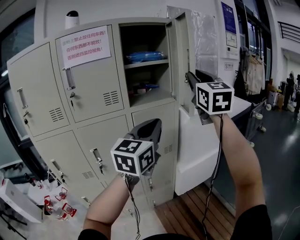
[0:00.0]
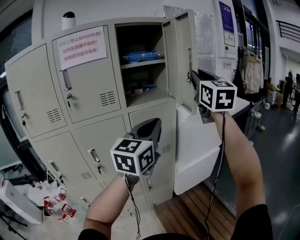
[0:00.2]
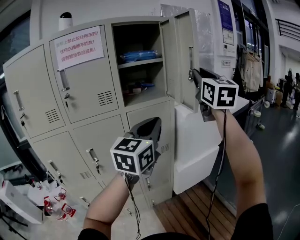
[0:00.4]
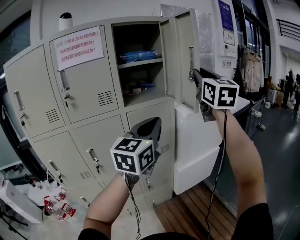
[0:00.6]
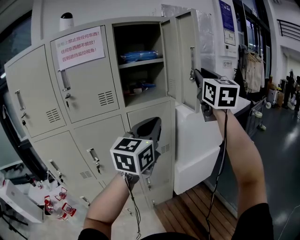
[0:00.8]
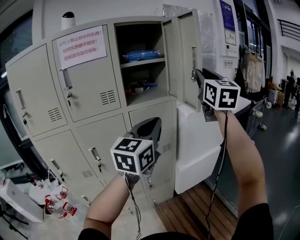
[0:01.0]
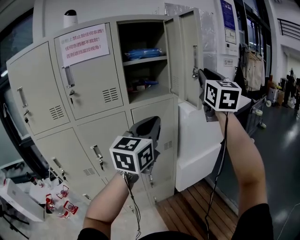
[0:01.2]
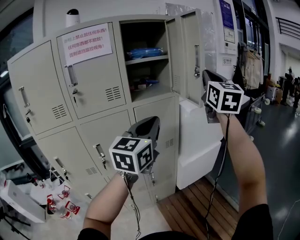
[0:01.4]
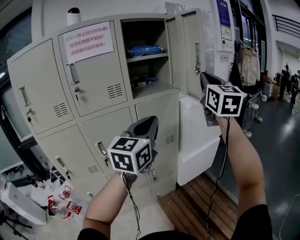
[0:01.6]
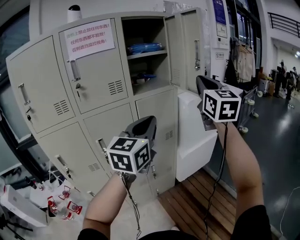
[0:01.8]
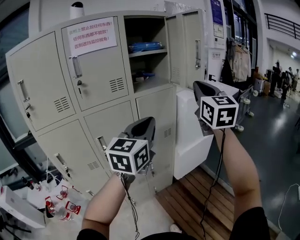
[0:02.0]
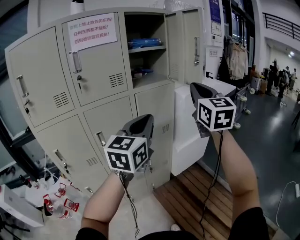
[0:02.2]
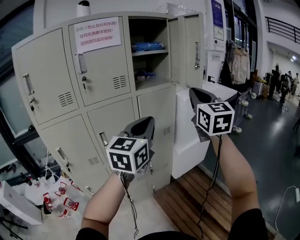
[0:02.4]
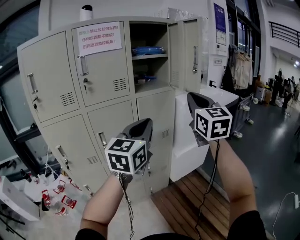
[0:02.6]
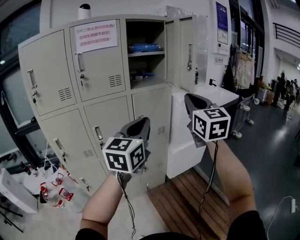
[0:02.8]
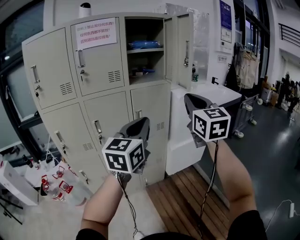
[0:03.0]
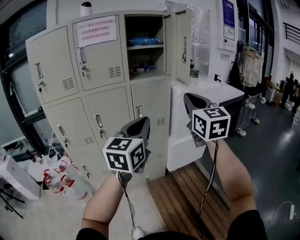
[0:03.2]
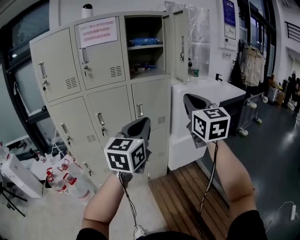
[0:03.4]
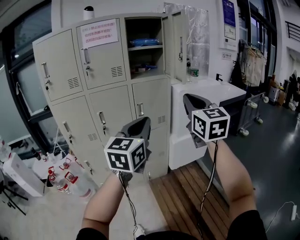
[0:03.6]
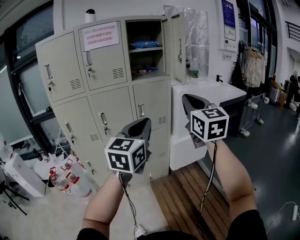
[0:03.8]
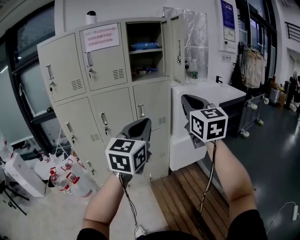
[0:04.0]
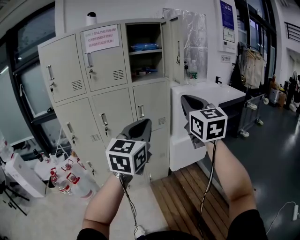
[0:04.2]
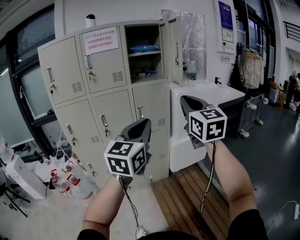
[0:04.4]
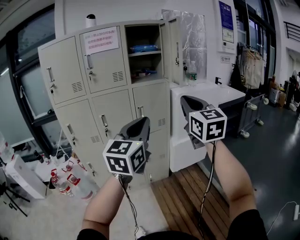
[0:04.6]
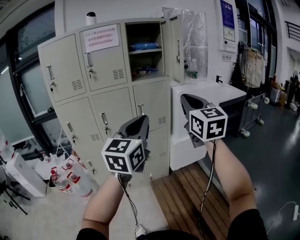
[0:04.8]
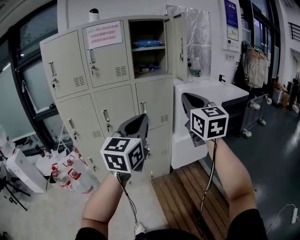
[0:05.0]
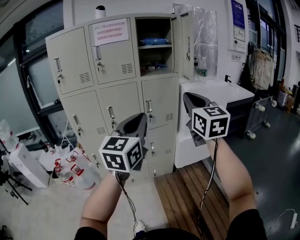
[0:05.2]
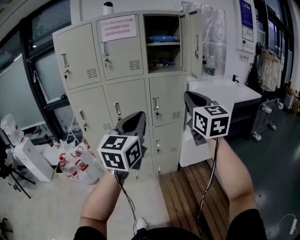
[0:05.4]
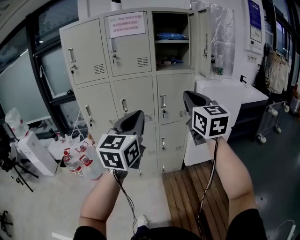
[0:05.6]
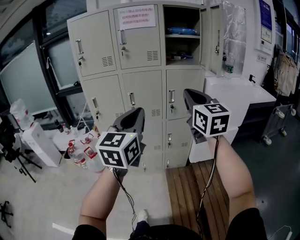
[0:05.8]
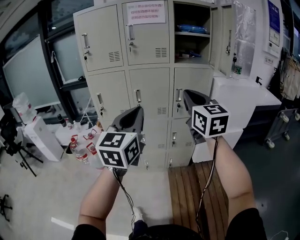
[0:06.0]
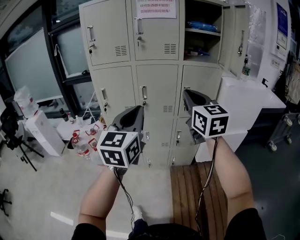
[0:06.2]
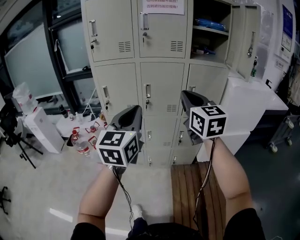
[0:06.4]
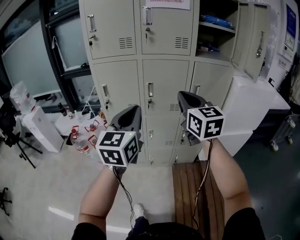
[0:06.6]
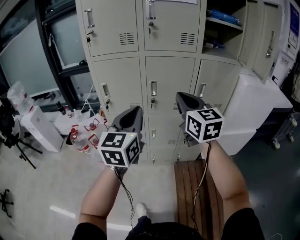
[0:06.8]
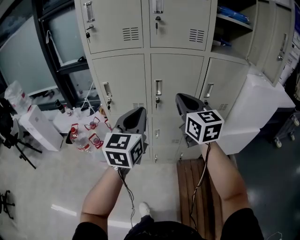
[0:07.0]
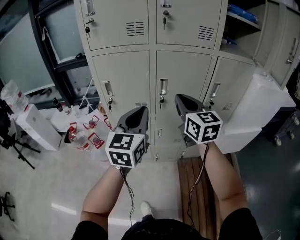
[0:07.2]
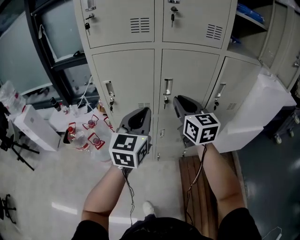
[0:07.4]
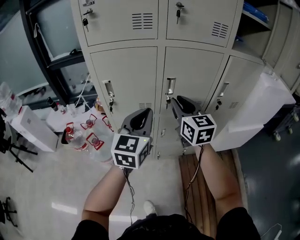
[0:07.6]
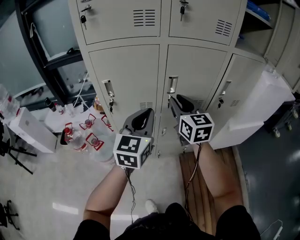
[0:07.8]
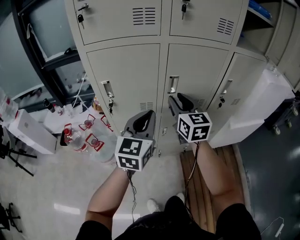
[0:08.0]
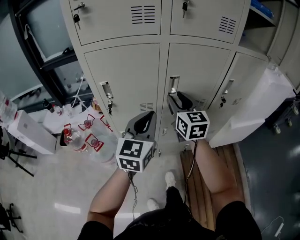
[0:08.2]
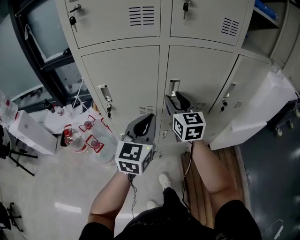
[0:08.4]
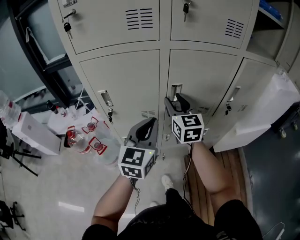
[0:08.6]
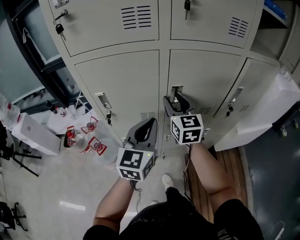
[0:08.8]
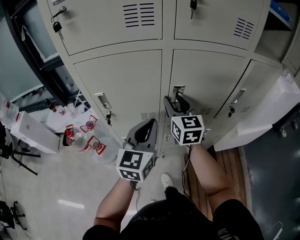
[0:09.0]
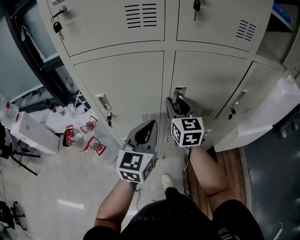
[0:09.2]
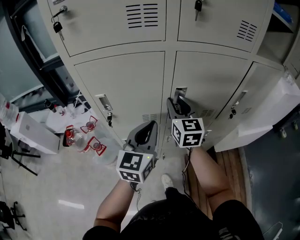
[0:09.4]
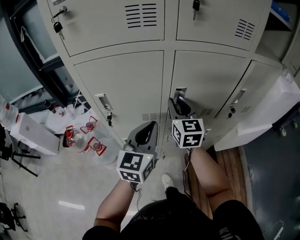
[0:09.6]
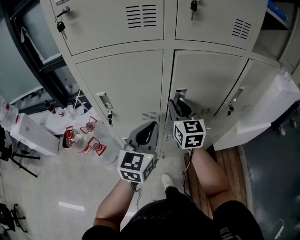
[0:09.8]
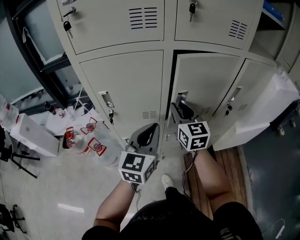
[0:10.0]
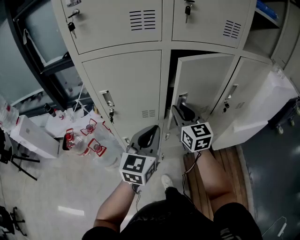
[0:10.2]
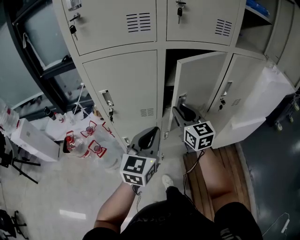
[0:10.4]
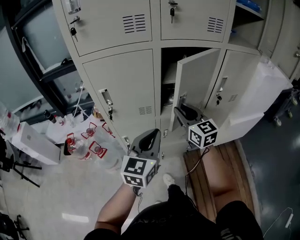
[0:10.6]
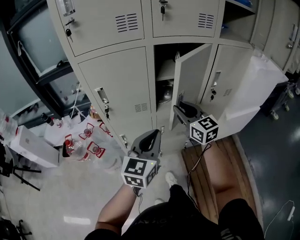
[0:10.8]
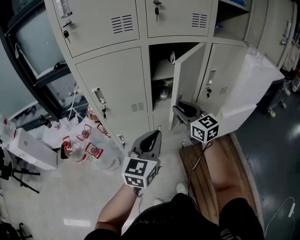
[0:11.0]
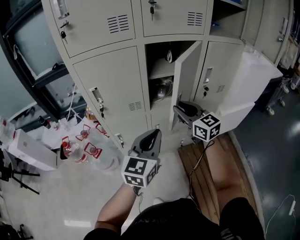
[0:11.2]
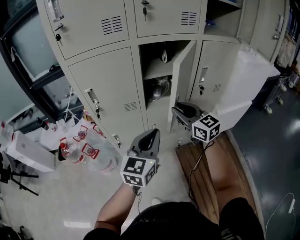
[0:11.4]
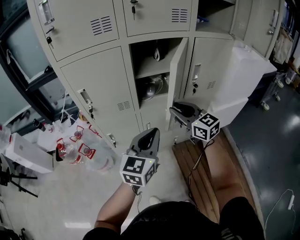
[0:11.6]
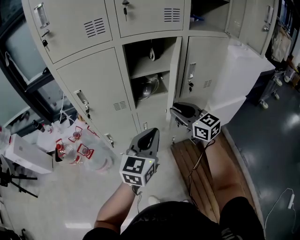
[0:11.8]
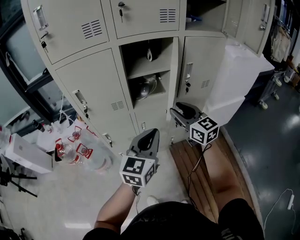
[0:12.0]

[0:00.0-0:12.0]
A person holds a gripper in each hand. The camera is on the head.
0:00.0 to 0:01.6: The right gripper moves roughly 5 cm, and closes its fingers, while the left gripper moves roughly 5 cm.
0:01.6 to 0:03.0: The right gripper goes about 15 cm backward and downward. The left gripper moves backward, about 10 cm.
0:03.0 to 0:04.4: The left gripper is displaced backward and to the right by approximately 10 cm; the right gripper goes roughly 10 cm backward.
0:04.4 to 0:06.0: The two grippers go roughly 15 cm to the left. The left gripper rotates some 20 degrees.
0:06.0 to 0:07.6: Both grippers travel together forward, to the left and downward, about 40 cm. The right gripper opens its fingers.
0:07.6 to 0:09.0: The grippers both shift forward and downward by approximately 10 cm. The right gripper opens.
0:09.0 to 0:10.4: The two grippers go about 10 cm backward.
0:10.4 to 0:12.0: The two grippers go about 15 cm to the right and backward.

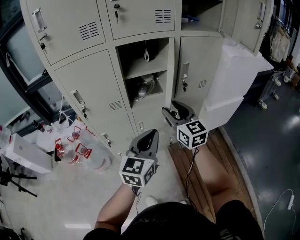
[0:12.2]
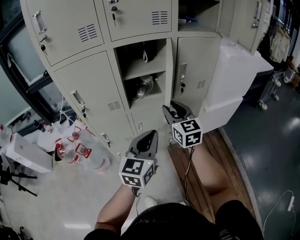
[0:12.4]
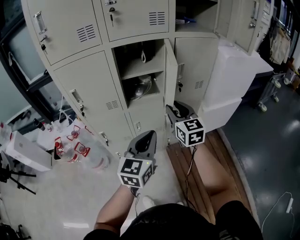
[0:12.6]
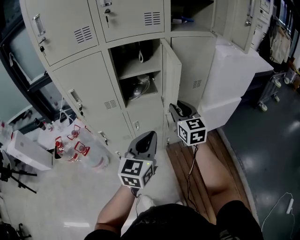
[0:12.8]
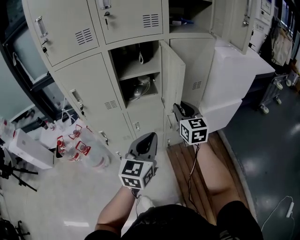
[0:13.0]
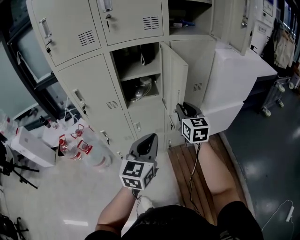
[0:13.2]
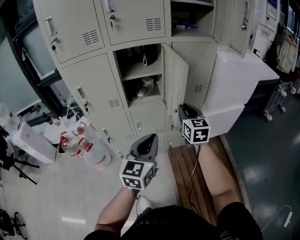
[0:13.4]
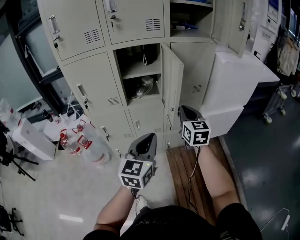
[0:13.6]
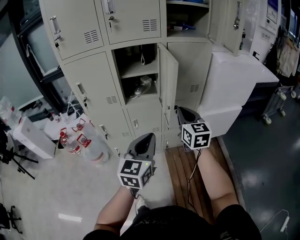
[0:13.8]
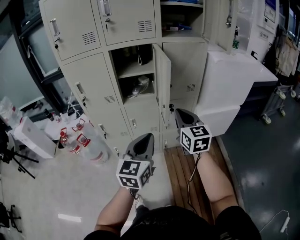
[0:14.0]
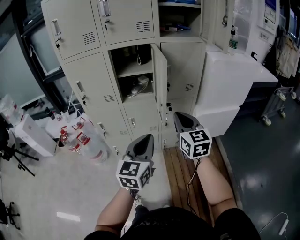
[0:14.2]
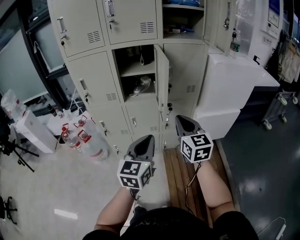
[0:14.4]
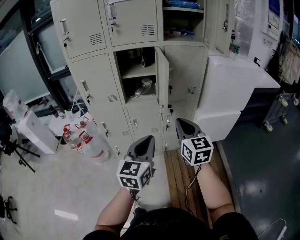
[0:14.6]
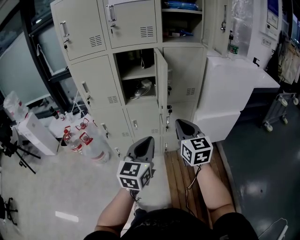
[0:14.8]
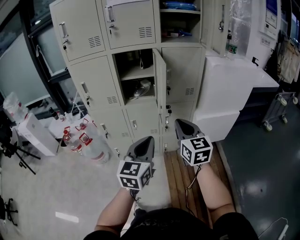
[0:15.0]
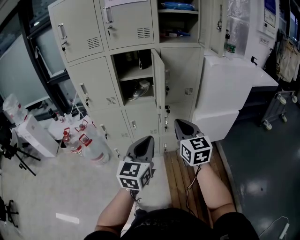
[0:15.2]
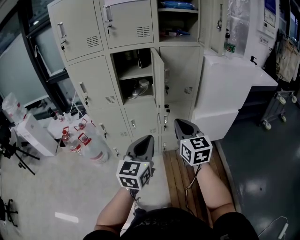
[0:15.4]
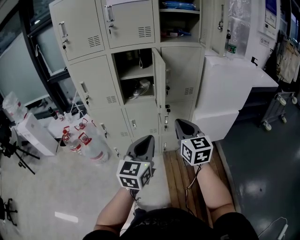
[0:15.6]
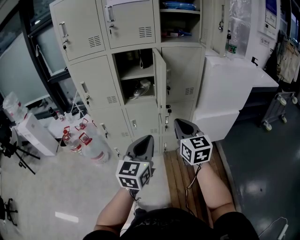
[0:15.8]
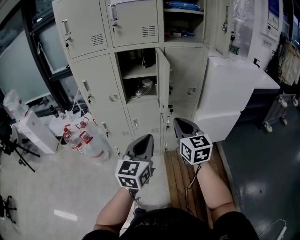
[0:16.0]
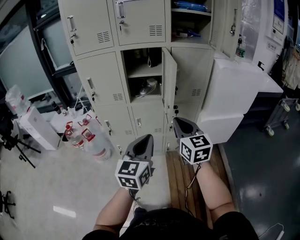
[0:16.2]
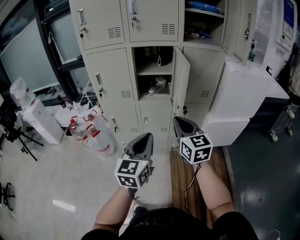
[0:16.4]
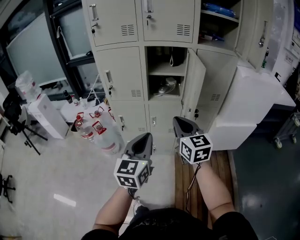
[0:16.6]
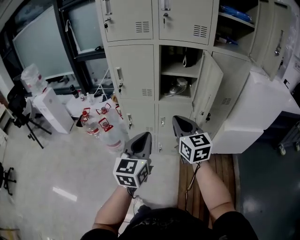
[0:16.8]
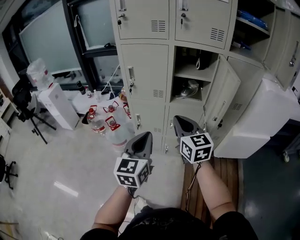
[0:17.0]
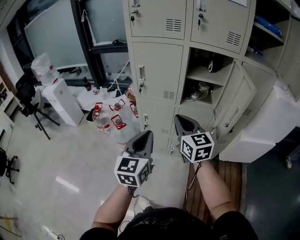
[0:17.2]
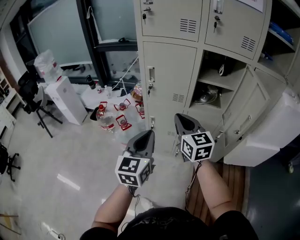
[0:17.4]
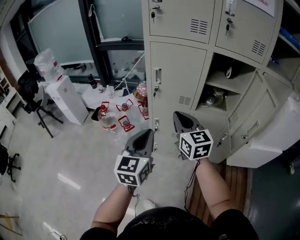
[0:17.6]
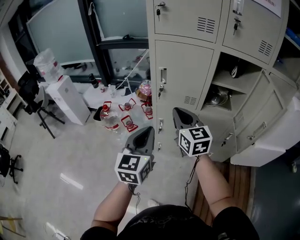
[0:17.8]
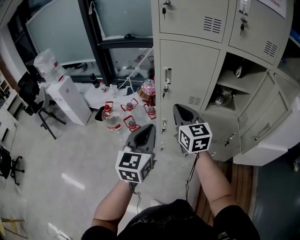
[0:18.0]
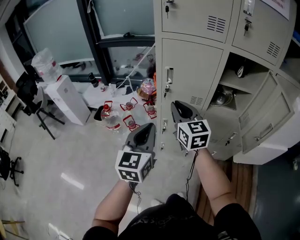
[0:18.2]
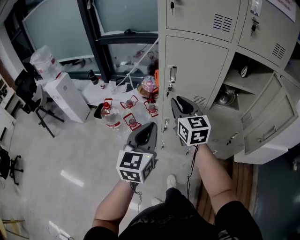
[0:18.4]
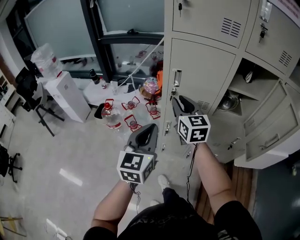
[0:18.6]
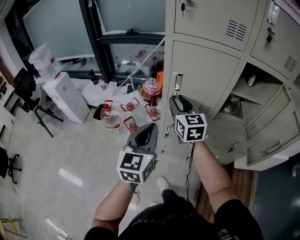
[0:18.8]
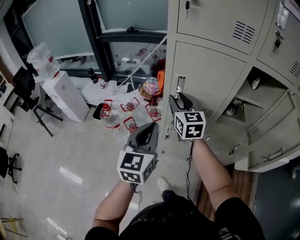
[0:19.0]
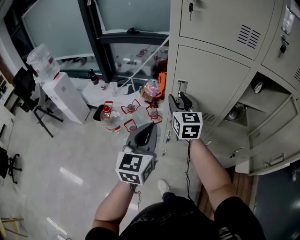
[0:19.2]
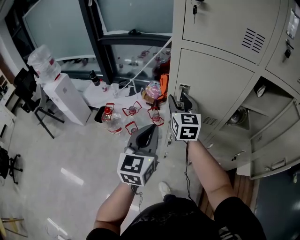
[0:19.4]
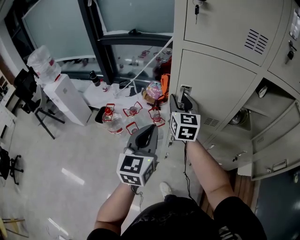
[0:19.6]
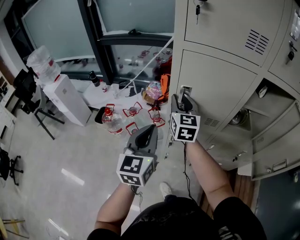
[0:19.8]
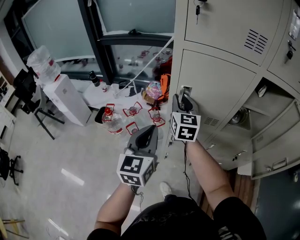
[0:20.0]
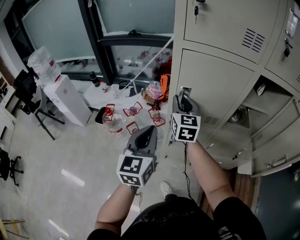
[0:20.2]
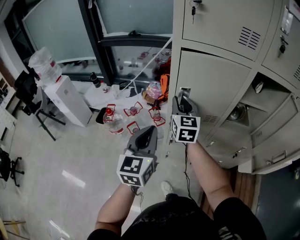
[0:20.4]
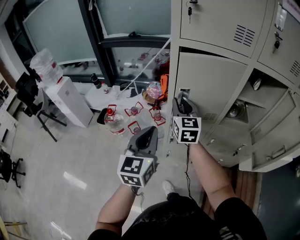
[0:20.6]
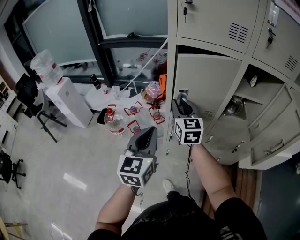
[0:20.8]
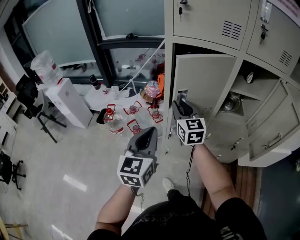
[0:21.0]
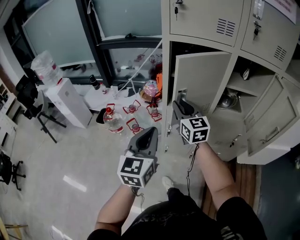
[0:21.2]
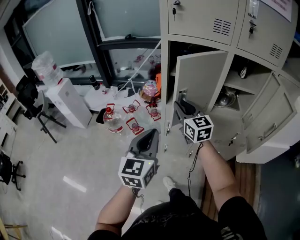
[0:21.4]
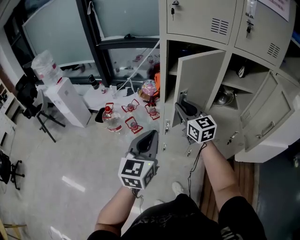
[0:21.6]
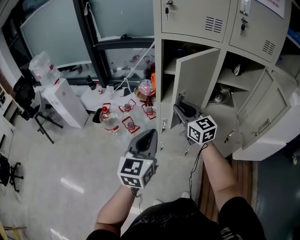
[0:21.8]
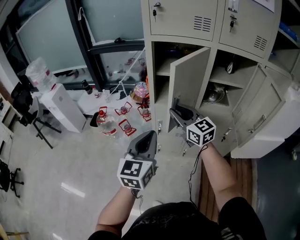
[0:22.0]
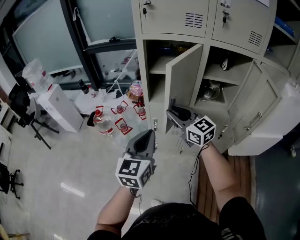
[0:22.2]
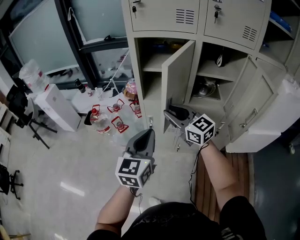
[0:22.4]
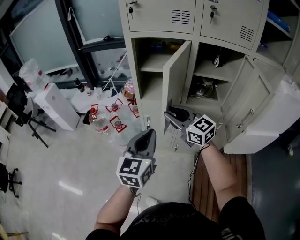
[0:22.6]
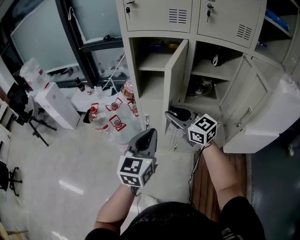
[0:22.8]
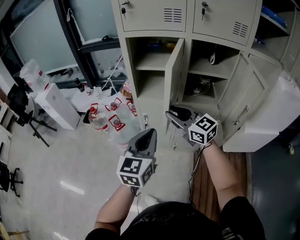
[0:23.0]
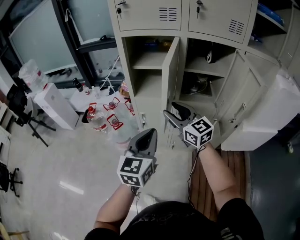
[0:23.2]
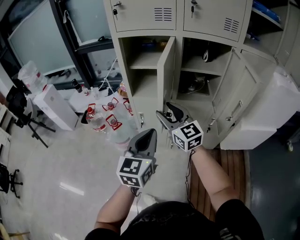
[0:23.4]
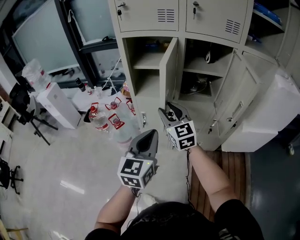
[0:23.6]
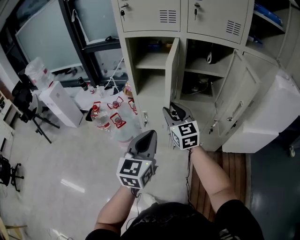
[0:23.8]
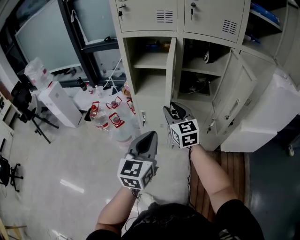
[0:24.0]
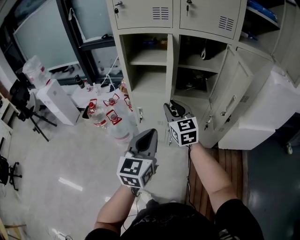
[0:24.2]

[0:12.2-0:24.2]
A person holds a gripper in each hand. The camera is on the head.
0:12.2 to 0:13.8: Both grippers move to the right and backward, about 15 cm. The right gripper closes up.
0:13.8 to 0:15.2: The left gripper heads backward and to the right, covering about 10 cm. Meanwhile the right gripper moves backward, some 10 cm.
0:15.2 to 0:16.6: The grippers both shift to the left by approximately 15 cm.
0:16.6 to 0:18.2: The grippers both shift to the left and forward by some 40 cm.
0:18.2 to 0:19.8: Both grippers move forward, some 20 cm. The right gripper opens.
0:19.8 to 0:21.2: Both grippers move backward, about 15 cm.
0:21.2 to 0:22.6: The right gripper goes some 15 cm backward and to the right, and swivels some 20 degrees. Meanwhile the left gripper goes approximately 15 cm to the right and backward.
0:22.6 to 0:24.2: The right gripper moves to the right, about 10 cm, rotates about 30 degrees, and opens and closes again. Meanwhile the left gripper moves backward and to the right, roughly 10 cm.
